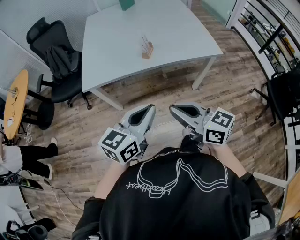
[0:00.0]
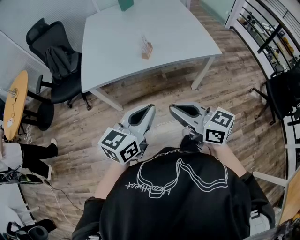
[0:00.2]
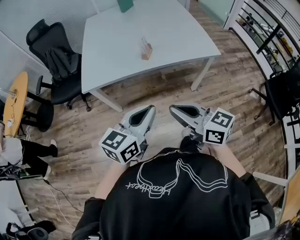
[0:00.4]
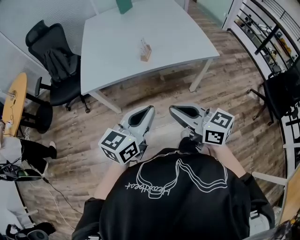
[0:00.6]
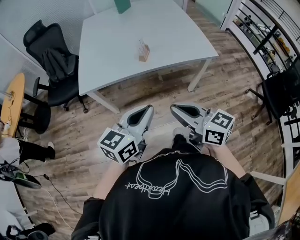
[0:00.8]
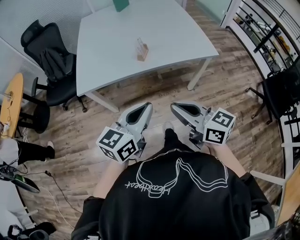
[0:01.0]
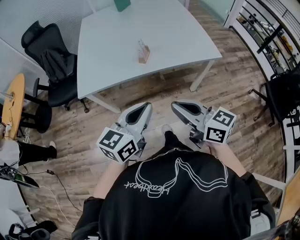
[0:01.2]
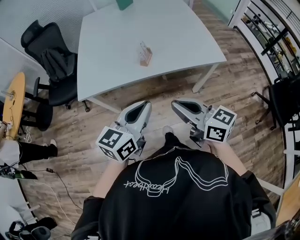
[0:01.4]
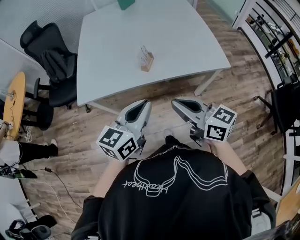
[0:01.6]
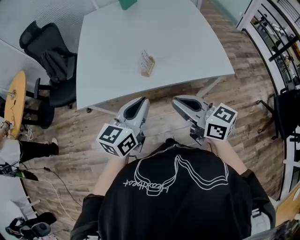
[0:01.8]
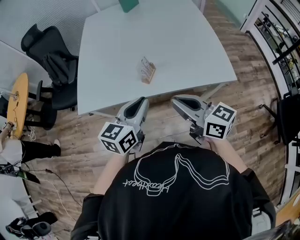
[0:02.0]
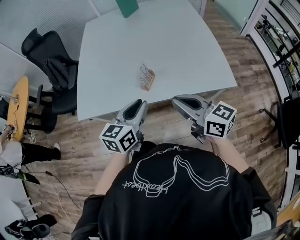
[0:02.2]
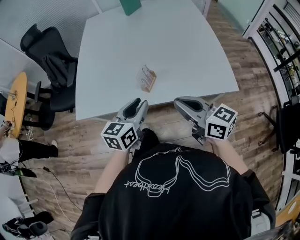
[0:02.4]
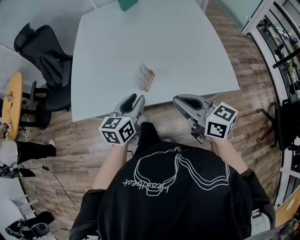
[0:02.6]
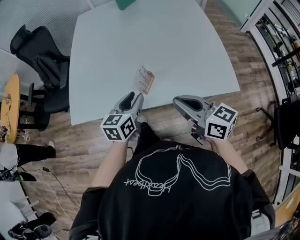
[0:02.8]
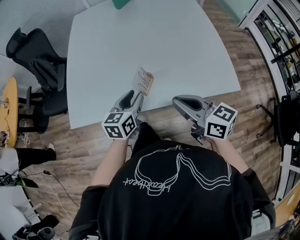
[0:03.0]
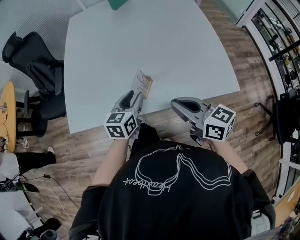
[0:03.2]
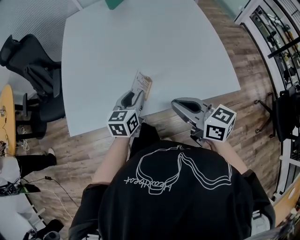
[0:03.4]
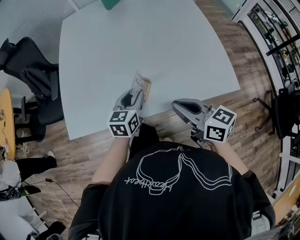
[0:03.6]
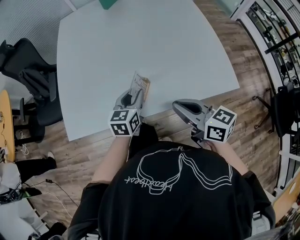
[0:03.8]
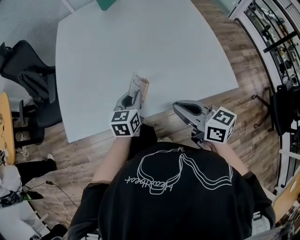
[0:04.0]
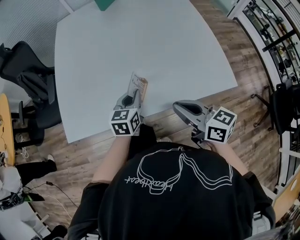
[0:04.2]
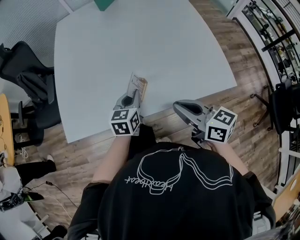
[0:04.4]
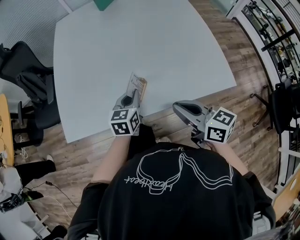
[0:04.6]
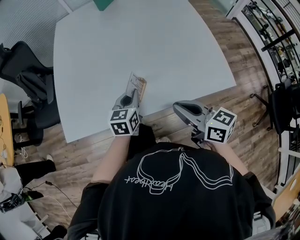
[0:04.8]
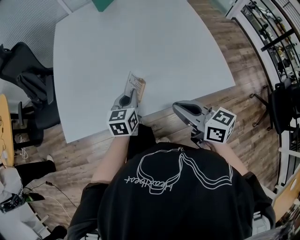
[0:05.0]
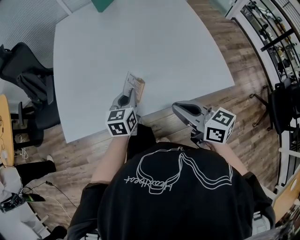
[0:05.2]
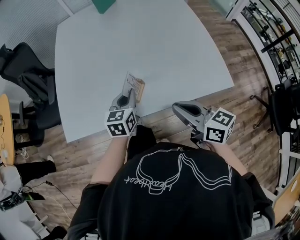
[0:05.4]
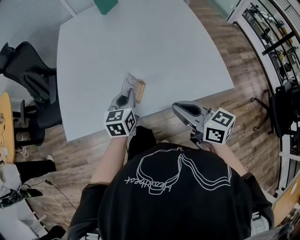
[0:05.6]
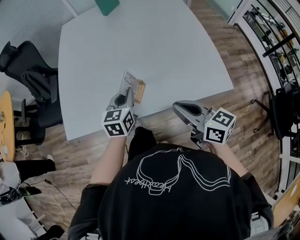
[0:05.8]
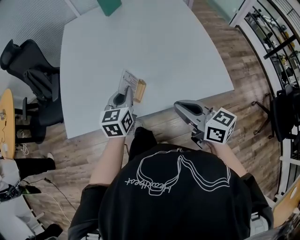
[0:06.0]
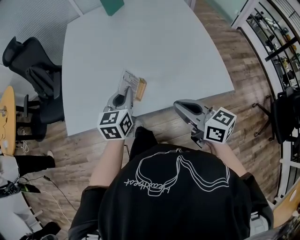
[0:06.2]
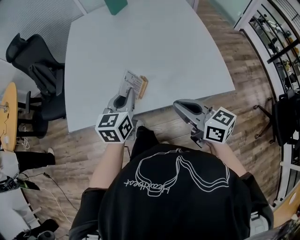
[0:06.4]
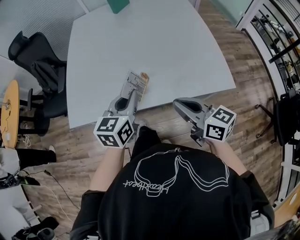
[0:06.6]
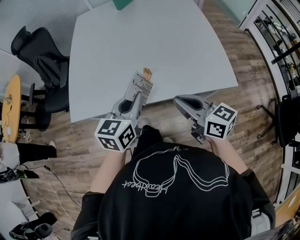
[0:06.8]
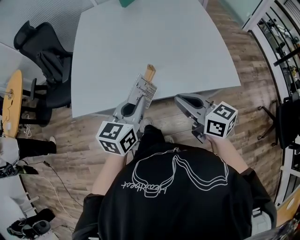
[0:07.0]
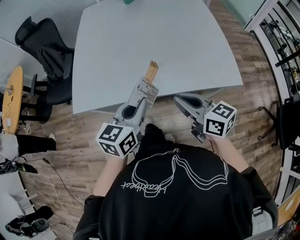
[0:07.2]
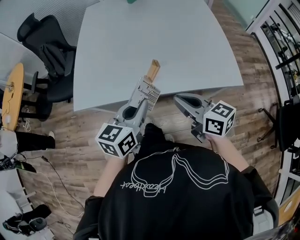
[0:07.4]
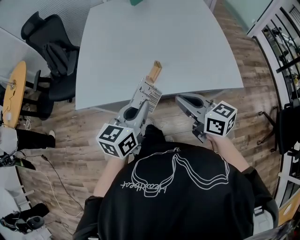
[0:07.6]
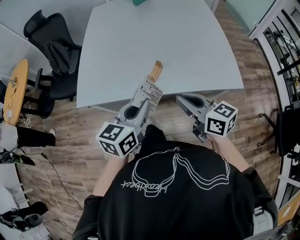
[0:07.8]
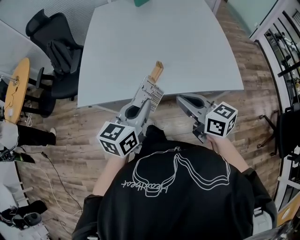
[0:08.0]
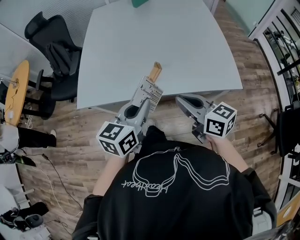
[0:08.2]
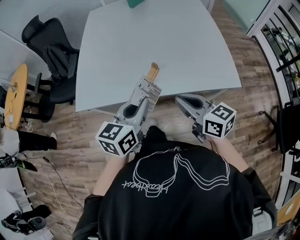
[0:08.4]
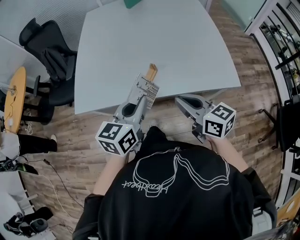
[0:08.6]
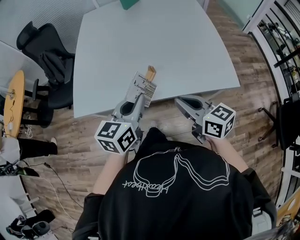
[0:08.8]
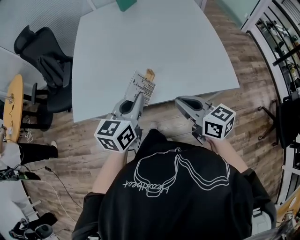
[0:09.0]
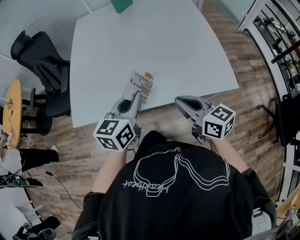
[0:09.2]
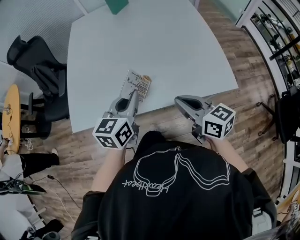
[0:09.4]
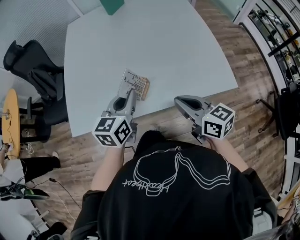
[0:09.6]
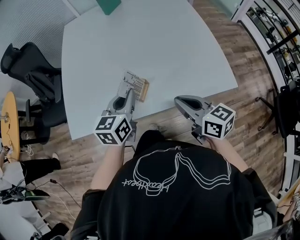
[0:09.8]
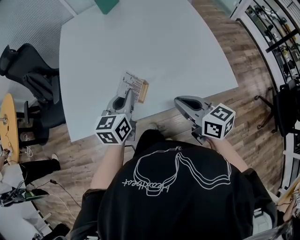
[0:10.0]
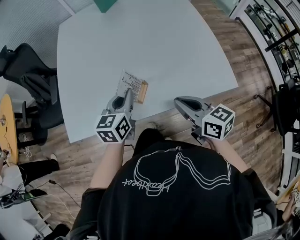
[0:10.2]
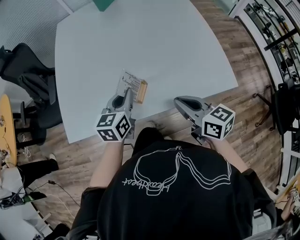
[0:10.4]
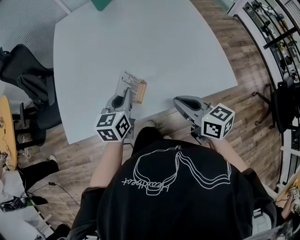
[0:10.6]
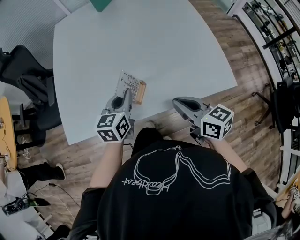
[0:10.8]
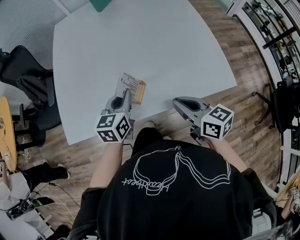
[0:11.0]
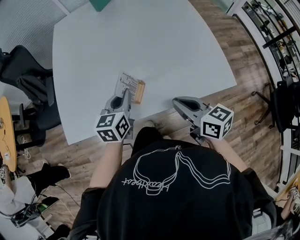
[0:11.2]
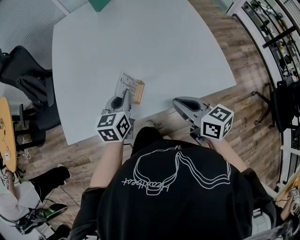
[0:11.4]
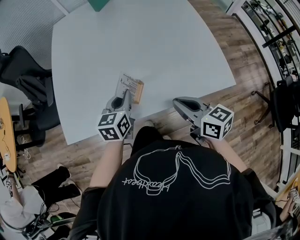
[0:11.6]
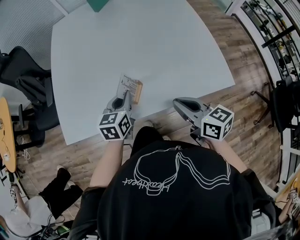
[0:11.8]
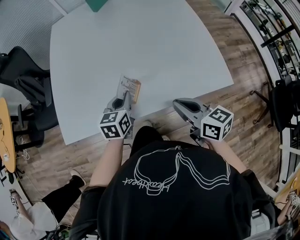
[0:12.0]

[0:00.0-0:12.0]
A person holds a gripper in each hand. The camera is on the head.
0:00.0 to 0:01.6: The two grippers go approximately 15 cm forward.
0:01.6 to 0:03.0: The left gripper heads forward and downward, covering approximately 30 cm, and opens up. Meanwhile the right gripper travels forward by some 20 cm.
0:03.0 to 0:04.4: The left gripper changes place by roughly 5 cm, and closes its fingers.
0:04.4 to 0:06.0: The left gripper goes about 5 cm upward.
0:06.0 to 0:07.6: The right gripper travels backward by some 5 cm. The left gripper shifts some 20 cm backward.
0:07.6 to 0:09.0: The left gripper heads forward, covering approximately 5 cm.
0:09.0 to 0:10.4: The right gripper travels forward by roughly 5 cm, while the left gripper goes approximately 15 cm forward and downward.
0:10.4 to 0:12.0: The left gripper moves downward, about 5 cm.

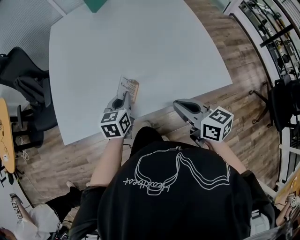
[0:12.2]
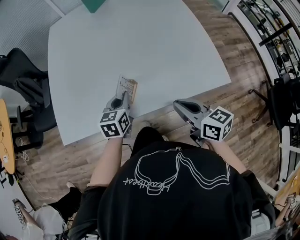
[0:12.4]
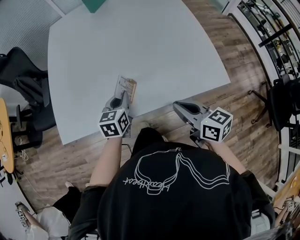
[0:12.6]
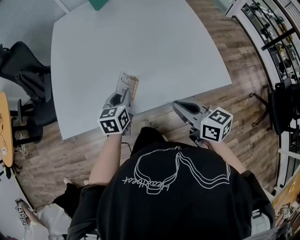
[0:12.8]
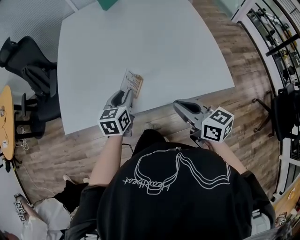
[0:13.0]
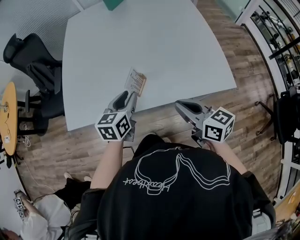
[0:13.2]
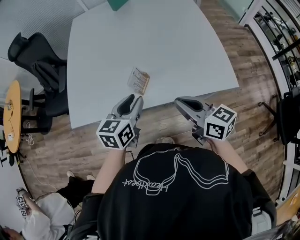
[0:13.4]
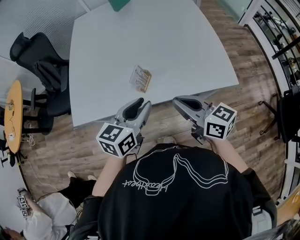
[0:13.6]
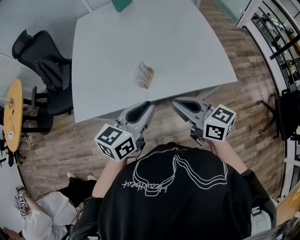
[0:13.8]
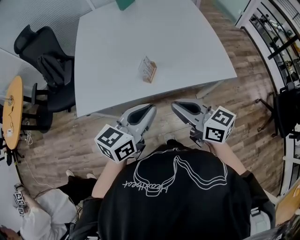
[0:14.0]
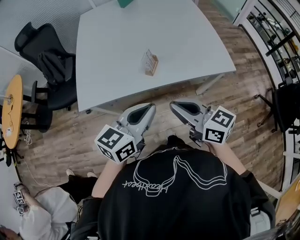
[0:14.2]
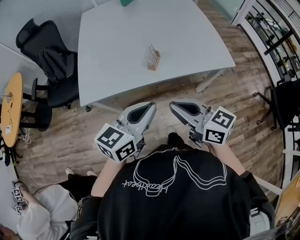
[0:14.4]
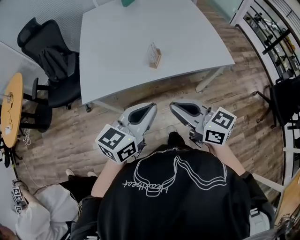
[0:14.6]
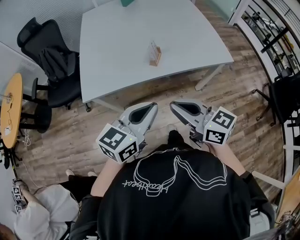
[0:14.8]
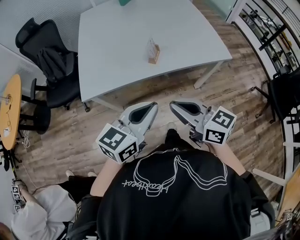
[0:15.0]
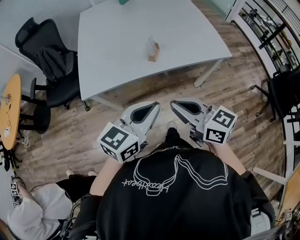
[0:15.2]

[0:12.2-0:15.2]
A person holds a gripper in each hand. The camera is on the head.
0:12.2 to 0:13.8: The right gripper heads backward, upward and to the left, covering about 15 cm; the left gripper moves backward and upward, some 25 cm, and rotates about 20 degrees.
0:13.8 to 0:15.2: Both grippers move backward and to the left, about 20 cm.

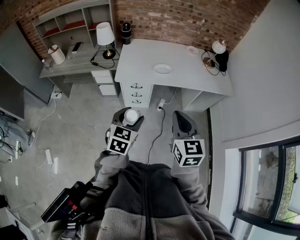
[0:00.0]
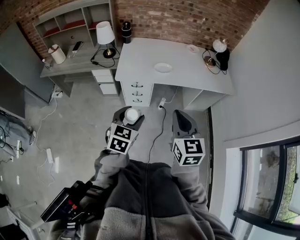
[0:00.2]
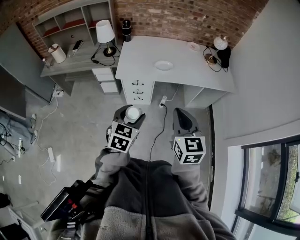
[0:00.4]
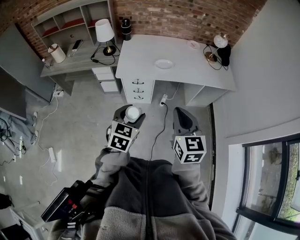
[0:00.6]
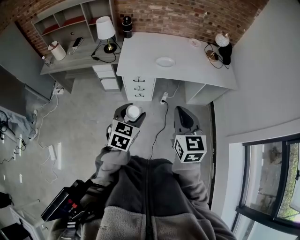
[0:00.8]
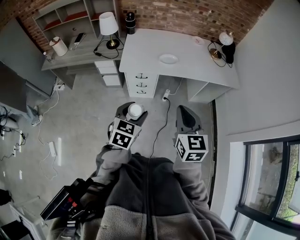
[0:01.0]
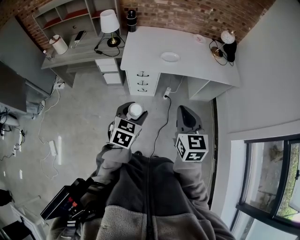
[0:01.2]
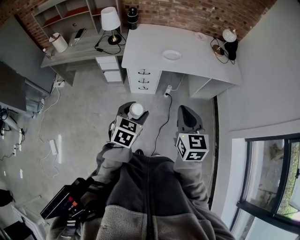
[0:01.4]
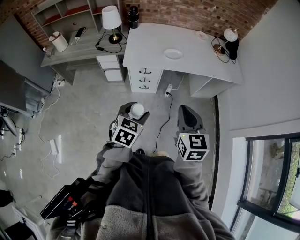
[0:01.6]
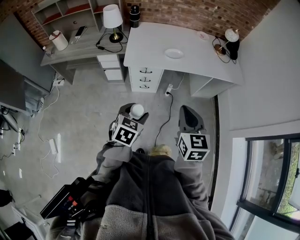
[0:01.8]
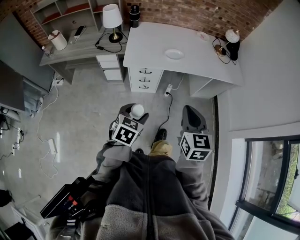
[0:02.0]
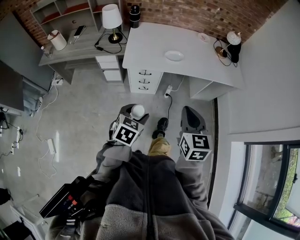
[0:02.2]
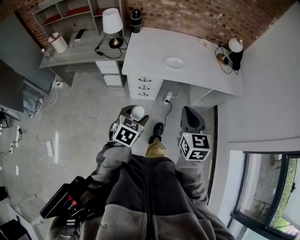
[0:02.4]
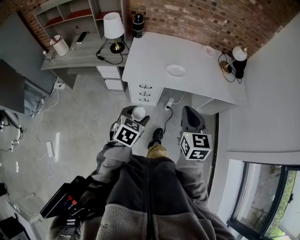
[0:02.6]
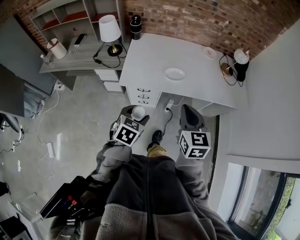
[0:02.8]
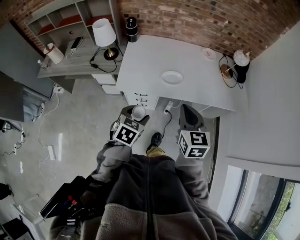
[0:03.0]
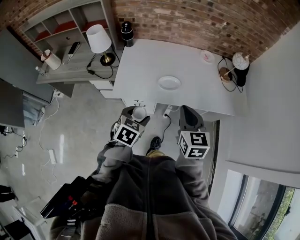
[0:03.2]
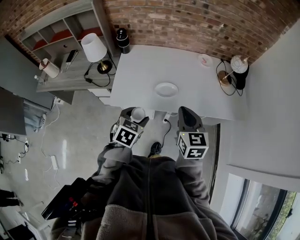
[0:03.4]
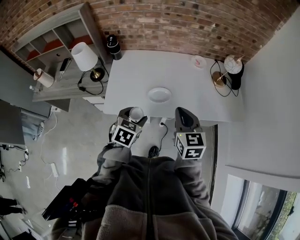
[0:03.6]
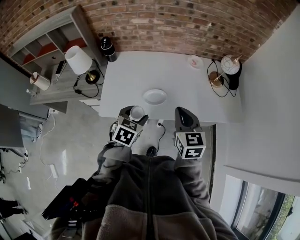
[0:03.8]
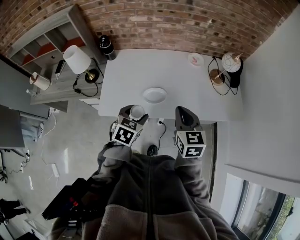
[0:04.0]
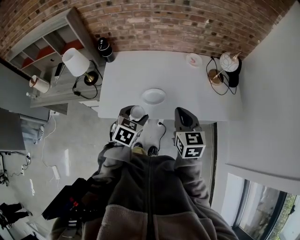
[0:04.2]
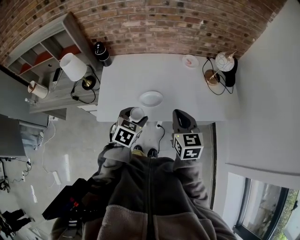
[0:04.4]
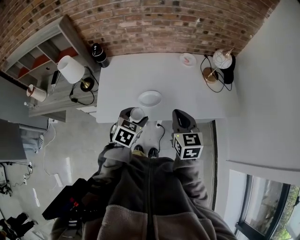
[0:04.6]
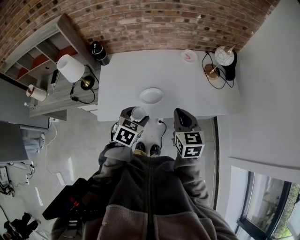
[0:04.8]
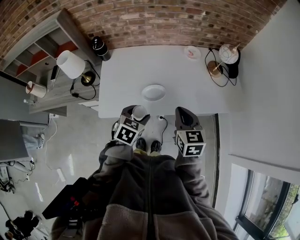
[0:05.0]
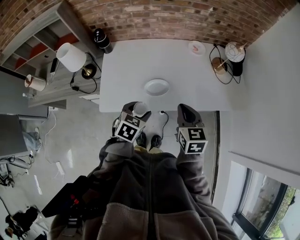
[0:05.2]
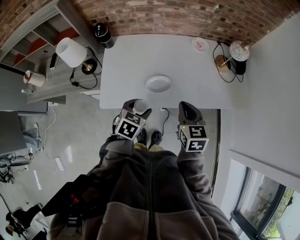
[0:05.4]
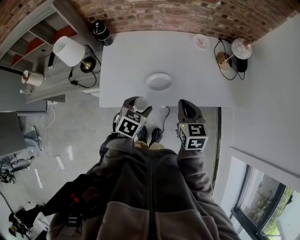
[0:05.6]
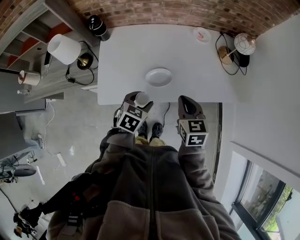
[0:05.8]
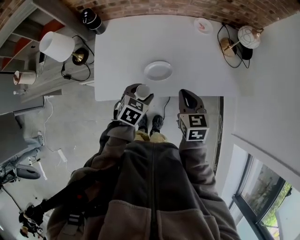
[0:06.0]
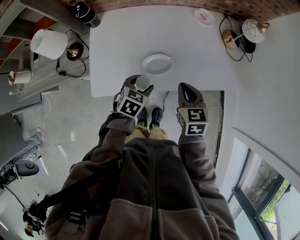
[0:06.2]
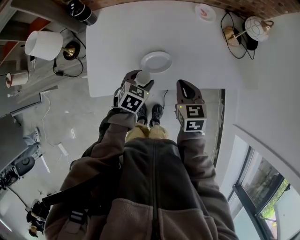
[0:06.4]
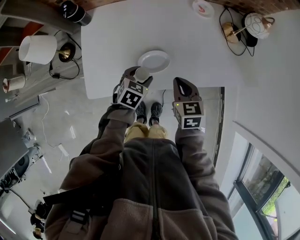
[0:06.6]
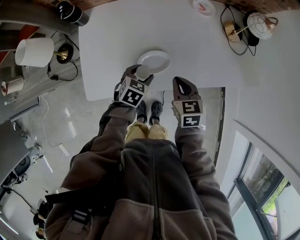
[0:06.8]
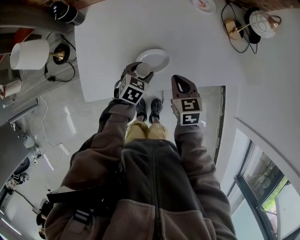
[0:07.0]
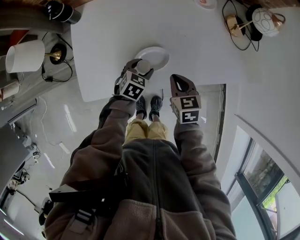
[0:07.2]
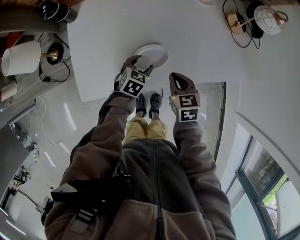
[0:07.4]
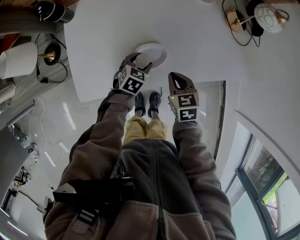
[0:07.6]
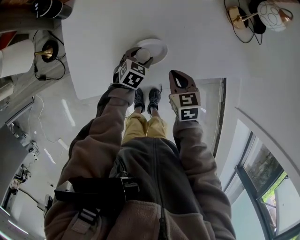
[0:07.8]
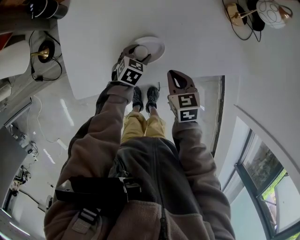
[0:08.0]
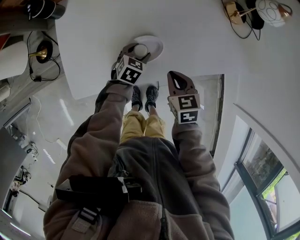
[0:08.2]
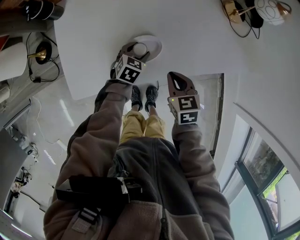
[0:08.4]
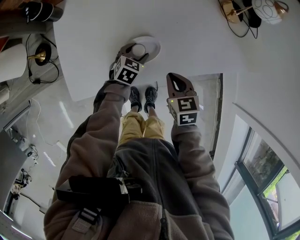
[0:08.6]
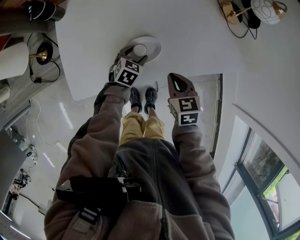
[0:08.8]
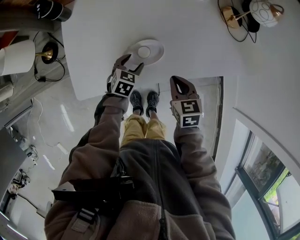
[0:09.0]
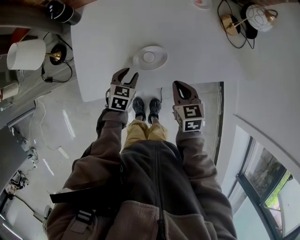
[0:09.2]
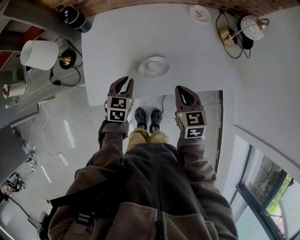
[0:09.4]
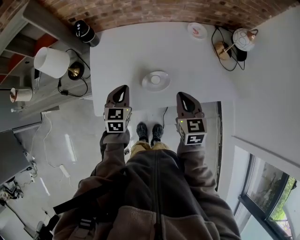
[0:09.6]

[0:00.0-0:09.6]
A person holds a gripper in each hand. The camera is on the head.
0:00.0 to 0:01.6: The grippers both shift downward by roughly 5 cm.
0:01.6 to 0:03.2: Both grippers travel together forward, roughly 30 cm.
0:03.2 to 0:04.8: Both grippers move forward and to the right, some 15 cm.
0:04.8 to 0:06.4: The two grippers go about 15 cm downward and forward.
0:06.4 to 0:08.0: The left gripper is displaced downward and forward by roughly 15 cm; the right gripper shifts approximately 10 cm downward.
0:08.0 to 0:09.6: The right gripper is displaced upward by some 15 cm. The left gripper travels upward and to the left by roughly 25 cm, rotates about 30 degrees, and closes.
